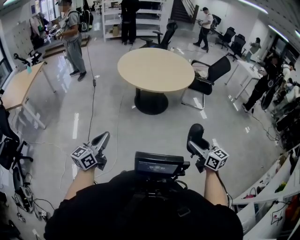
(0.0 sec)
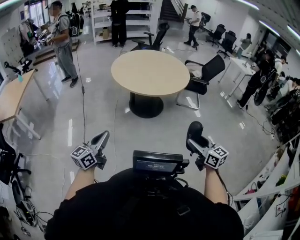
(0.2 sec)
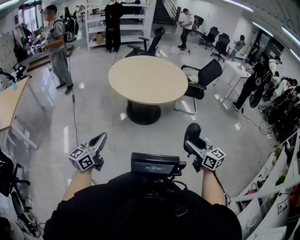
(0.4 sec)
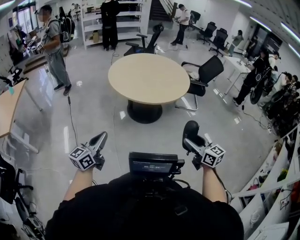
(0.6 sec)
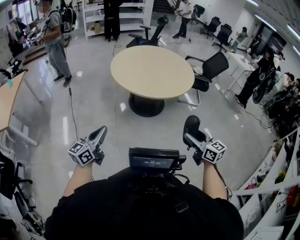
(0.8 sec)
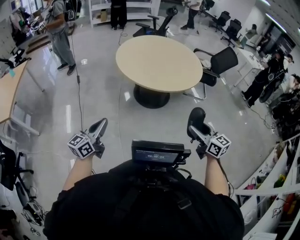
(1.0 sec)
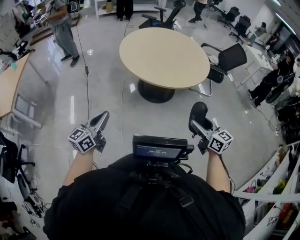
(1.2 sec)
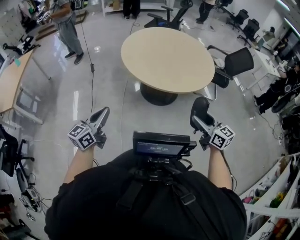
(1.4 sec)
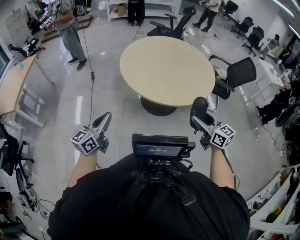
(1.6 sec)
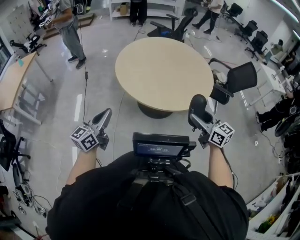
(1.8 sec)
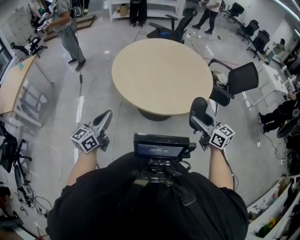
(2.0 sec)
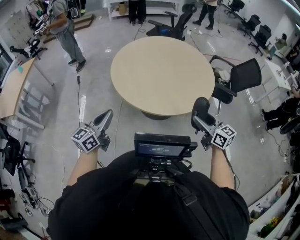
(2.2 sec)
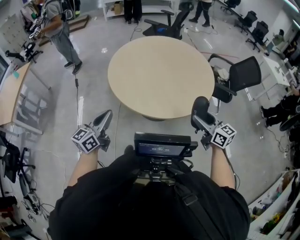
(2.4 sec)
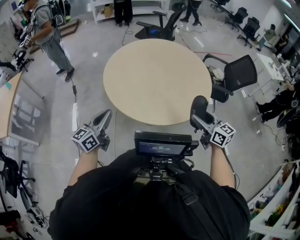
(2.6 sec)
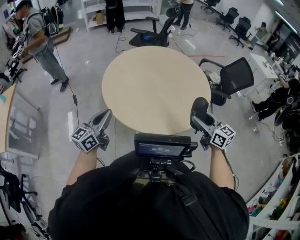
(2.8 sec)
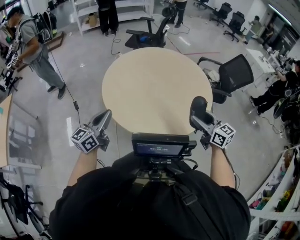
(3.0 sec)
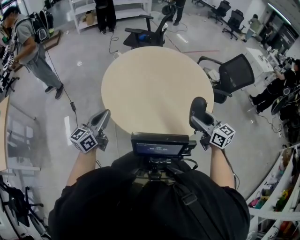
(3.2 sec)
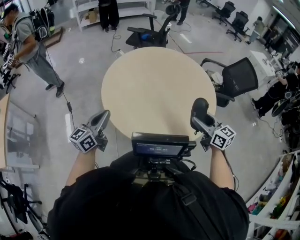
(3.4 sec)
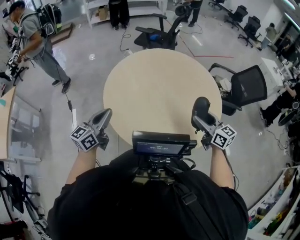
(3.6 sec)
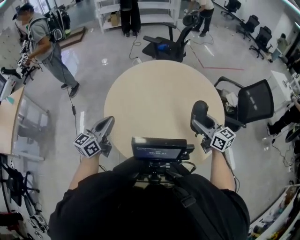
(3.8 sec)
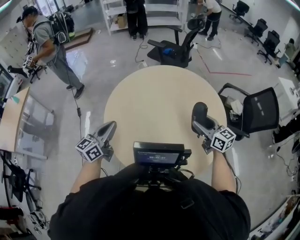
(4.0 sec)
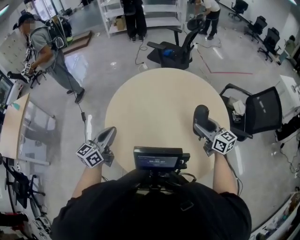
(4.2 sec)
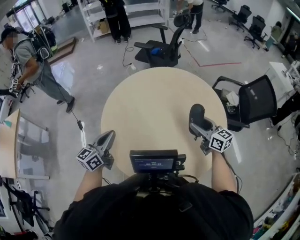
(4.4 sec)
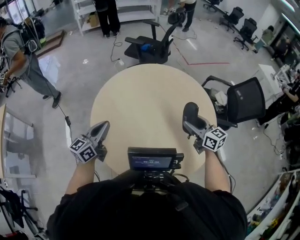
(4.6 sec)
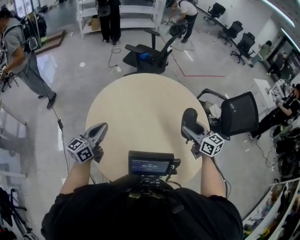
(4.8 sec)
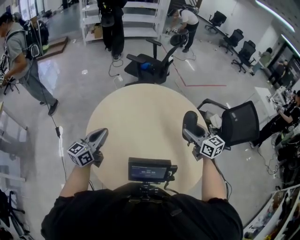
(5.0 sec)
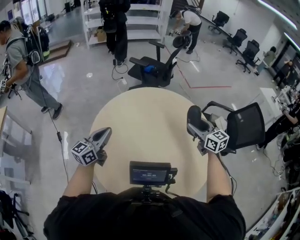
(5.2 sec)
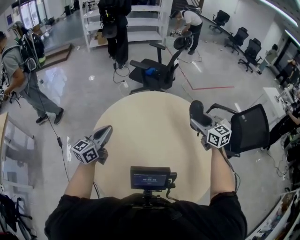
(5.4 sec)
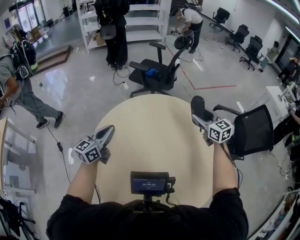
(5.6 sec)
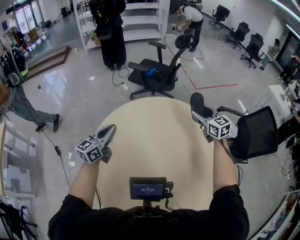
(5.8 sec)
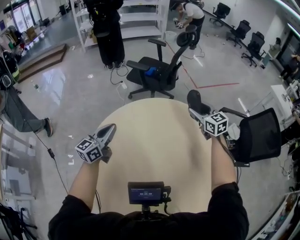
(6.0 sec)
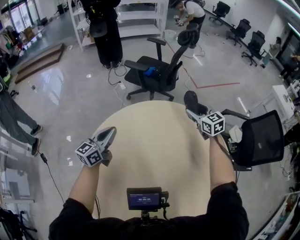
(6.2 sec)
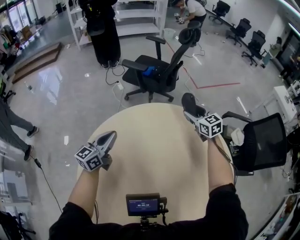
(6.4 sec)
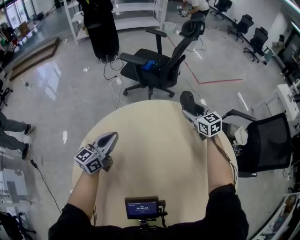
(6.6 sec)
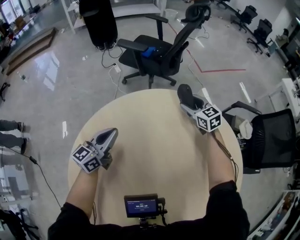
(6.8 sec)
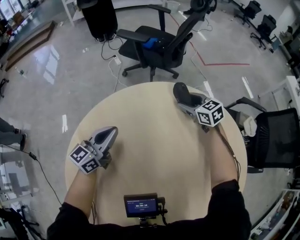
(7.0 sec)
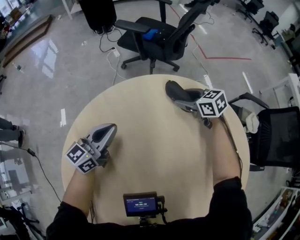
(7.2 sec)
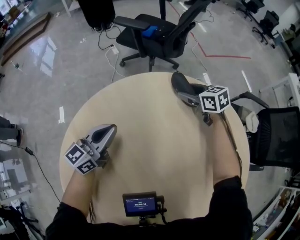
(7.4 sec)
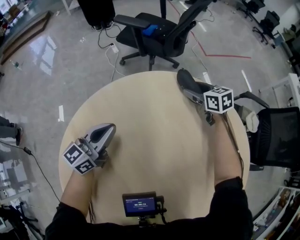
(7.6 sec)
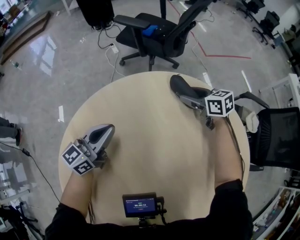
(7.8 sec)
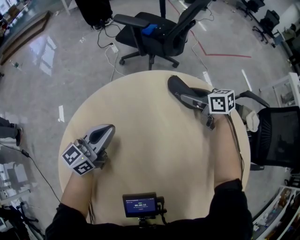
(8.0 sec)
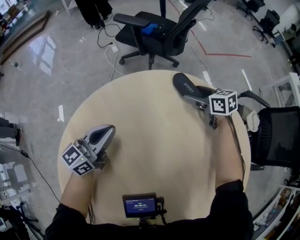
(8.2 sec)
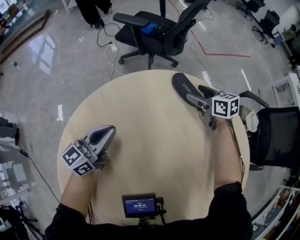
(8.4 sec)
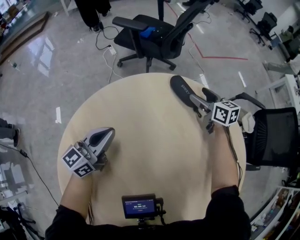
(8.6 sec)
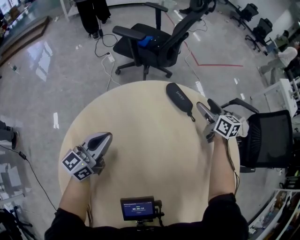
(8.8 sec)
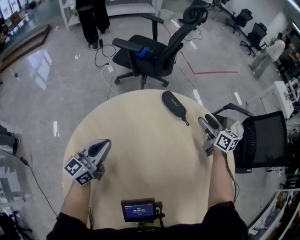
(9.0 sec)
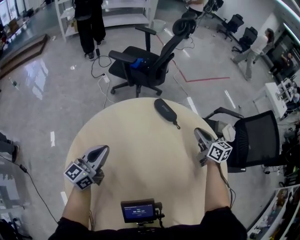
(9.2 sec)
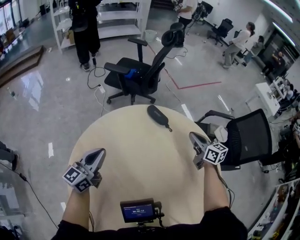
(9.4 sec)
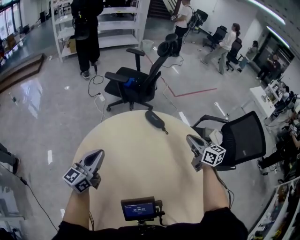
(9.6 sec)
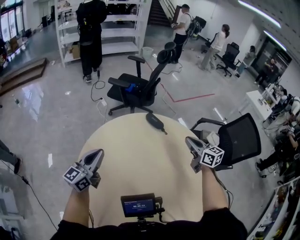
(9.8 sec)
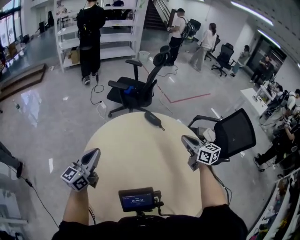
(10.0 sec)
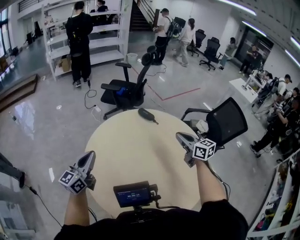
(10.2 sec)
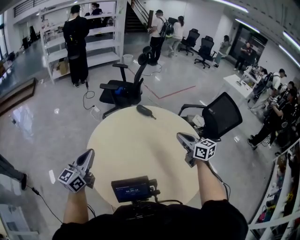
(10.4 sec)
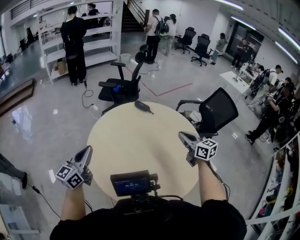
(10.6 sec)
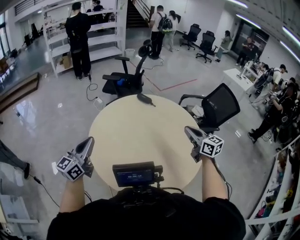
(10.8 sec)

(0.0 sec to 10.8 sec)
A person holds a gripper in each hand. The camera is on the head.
0.0 sec - 1.6 sec: The grippers both shift forward by some 40 cm.
1.6 sec - 3.0 sec: The two grippers go about 30 cm forward.
3.0 sec - 4.6 sec: The two grippers go about 30 cm forward.
4.6 sec - 6.2 sec: The grippers both shift forward by roughly 40 cm. The right gripper swivels roughly 20 degrees.
6.2 sec - 7.8 sec: The two grippers go some 20 cm downward and forward. The right gripper changes its angle by about 30 degrees.
7.8 sec - 9.2 sec: The right gripper is displaced backward, to the right and upward by approximately 20 cm, changes its angle by about 30 degrees, and closes up; the left gripper moves upward and backward, roughly 10 cm.
9.2 sec - 10.8 sec: The grippers both shift backward and upward by roughly 50 cm.

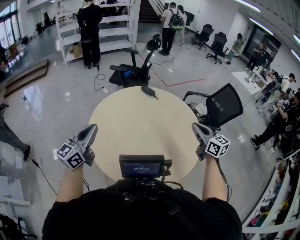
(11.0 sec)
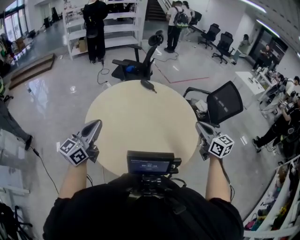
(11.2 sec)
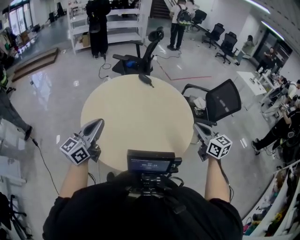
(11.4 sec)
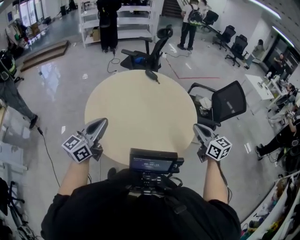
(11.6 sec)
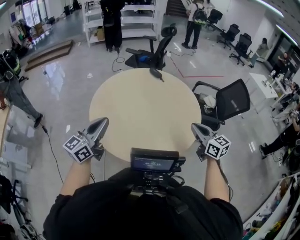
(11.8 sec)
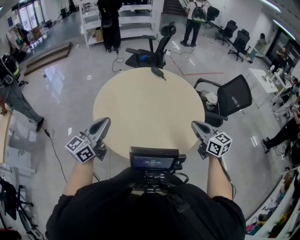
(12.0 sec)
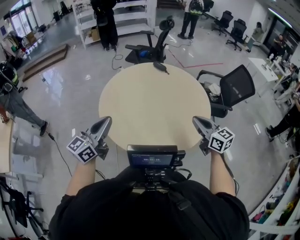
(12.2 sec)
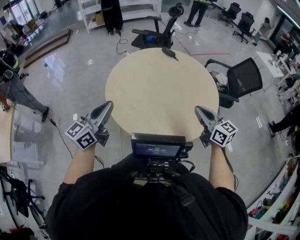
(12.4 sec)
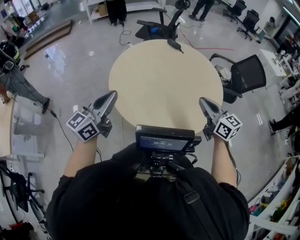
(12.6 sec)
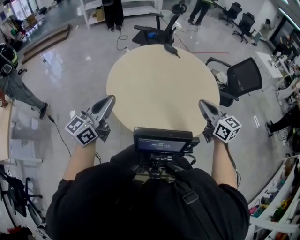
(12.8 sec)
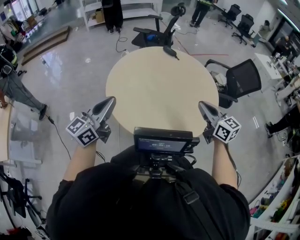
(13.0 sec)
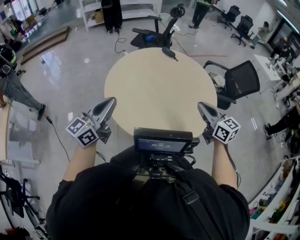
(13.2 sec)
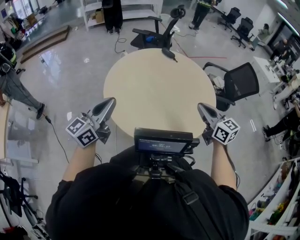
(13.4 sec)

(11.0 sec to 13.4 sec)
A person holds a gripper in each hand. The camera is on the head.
11.0 sec - 12.2 sec: Both grippers move backward, some 15 cm. The right gripper moves approximately 10 cm to the right and comes back.
12.2 sec - 13.4 sec: The grippers move only a little.

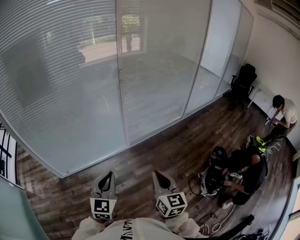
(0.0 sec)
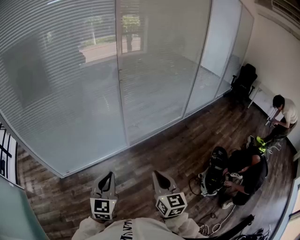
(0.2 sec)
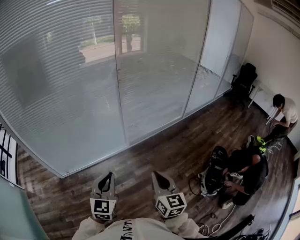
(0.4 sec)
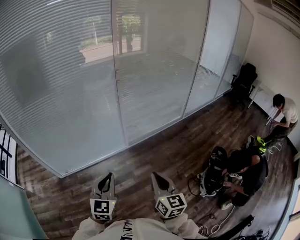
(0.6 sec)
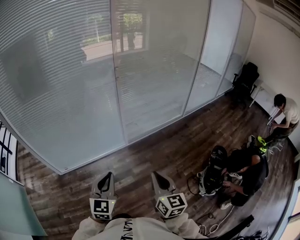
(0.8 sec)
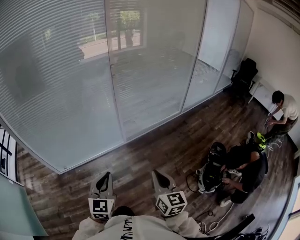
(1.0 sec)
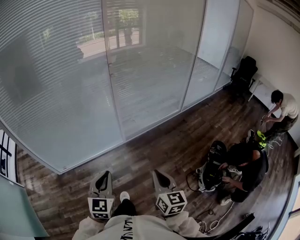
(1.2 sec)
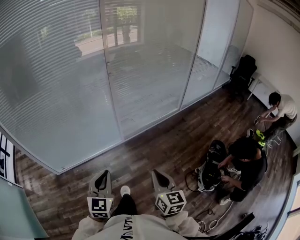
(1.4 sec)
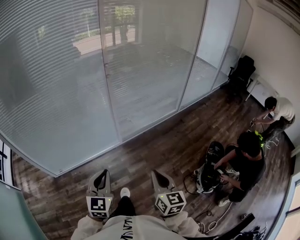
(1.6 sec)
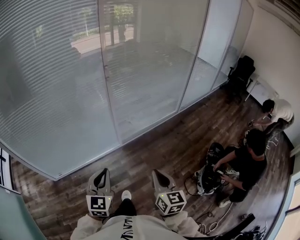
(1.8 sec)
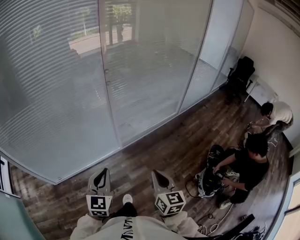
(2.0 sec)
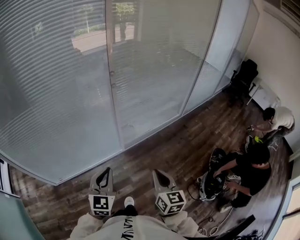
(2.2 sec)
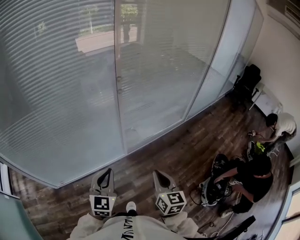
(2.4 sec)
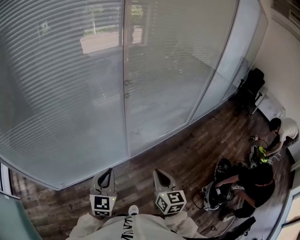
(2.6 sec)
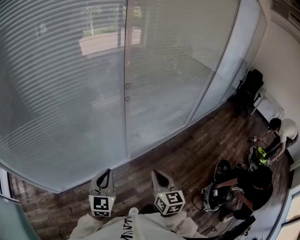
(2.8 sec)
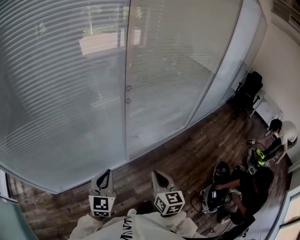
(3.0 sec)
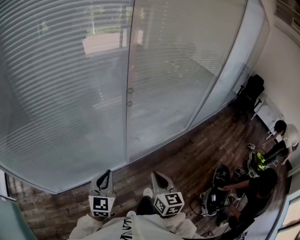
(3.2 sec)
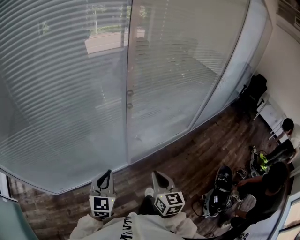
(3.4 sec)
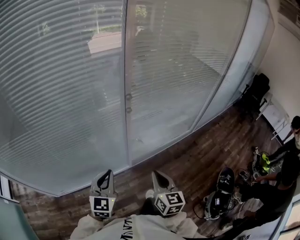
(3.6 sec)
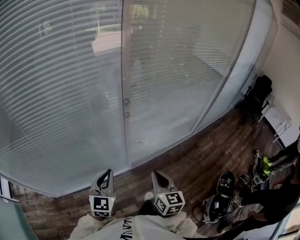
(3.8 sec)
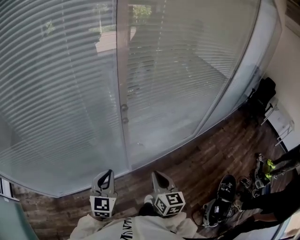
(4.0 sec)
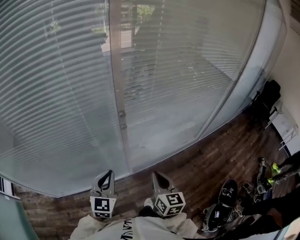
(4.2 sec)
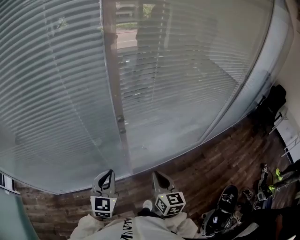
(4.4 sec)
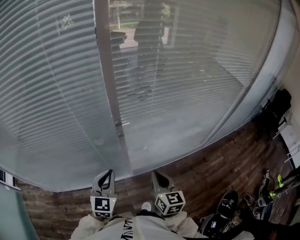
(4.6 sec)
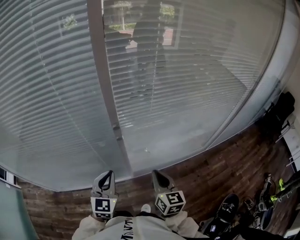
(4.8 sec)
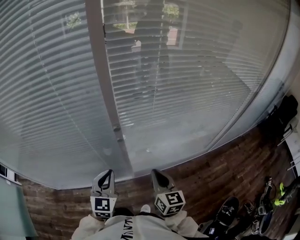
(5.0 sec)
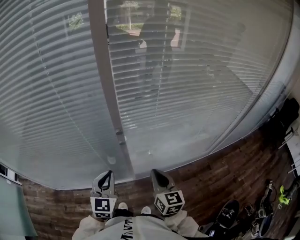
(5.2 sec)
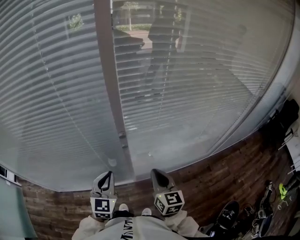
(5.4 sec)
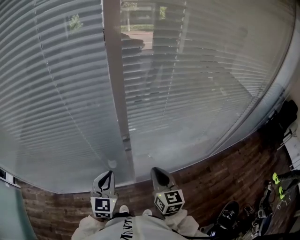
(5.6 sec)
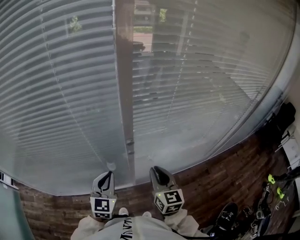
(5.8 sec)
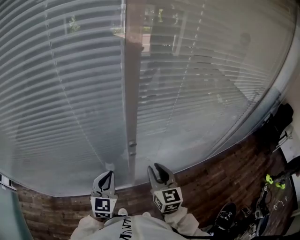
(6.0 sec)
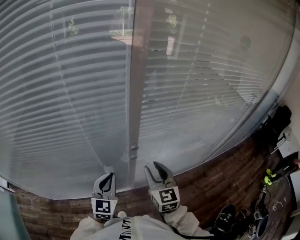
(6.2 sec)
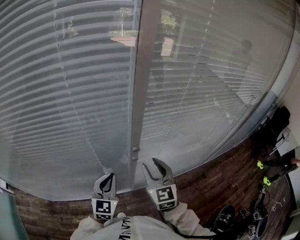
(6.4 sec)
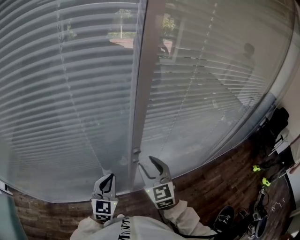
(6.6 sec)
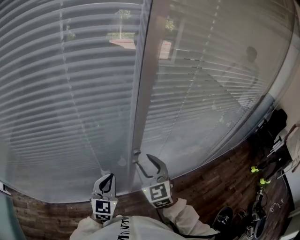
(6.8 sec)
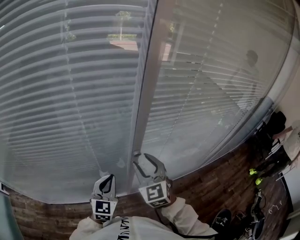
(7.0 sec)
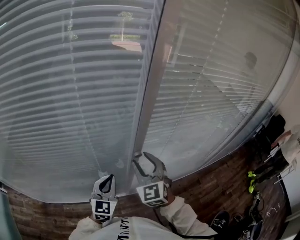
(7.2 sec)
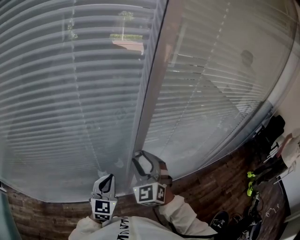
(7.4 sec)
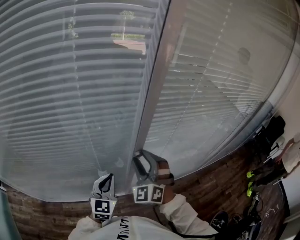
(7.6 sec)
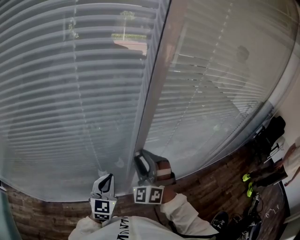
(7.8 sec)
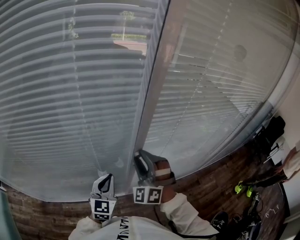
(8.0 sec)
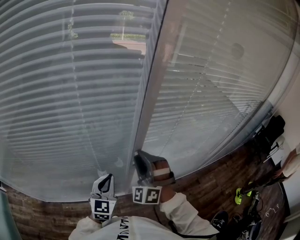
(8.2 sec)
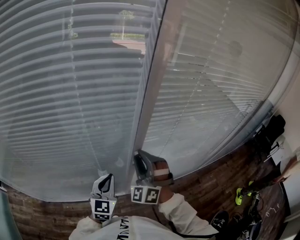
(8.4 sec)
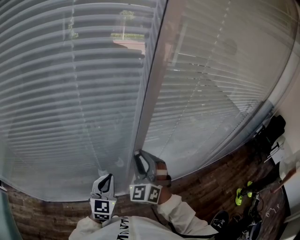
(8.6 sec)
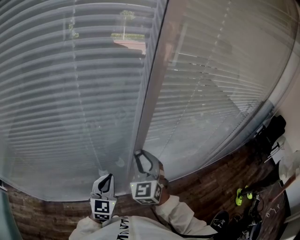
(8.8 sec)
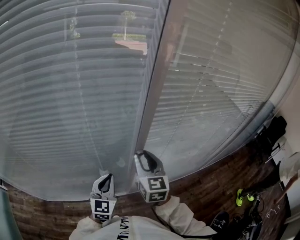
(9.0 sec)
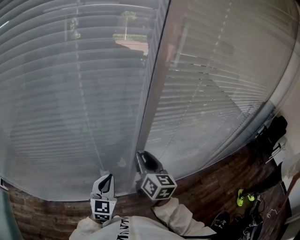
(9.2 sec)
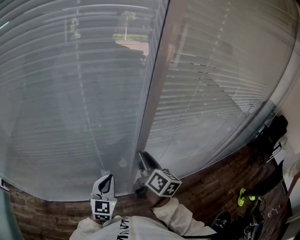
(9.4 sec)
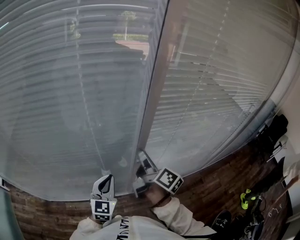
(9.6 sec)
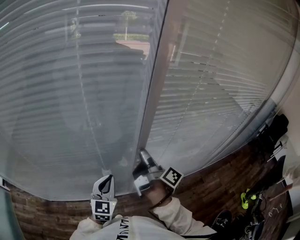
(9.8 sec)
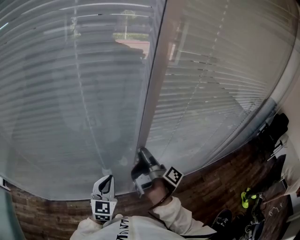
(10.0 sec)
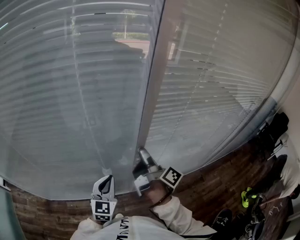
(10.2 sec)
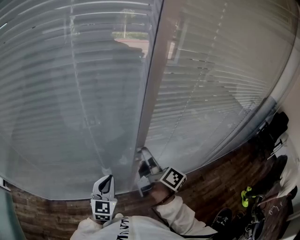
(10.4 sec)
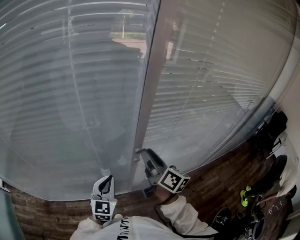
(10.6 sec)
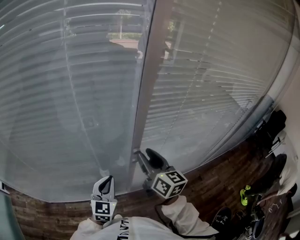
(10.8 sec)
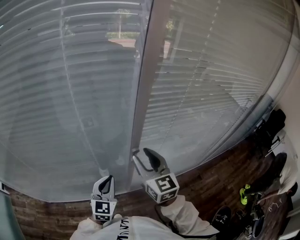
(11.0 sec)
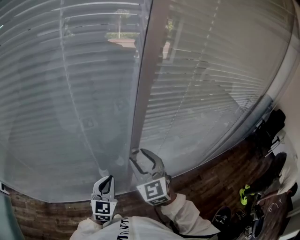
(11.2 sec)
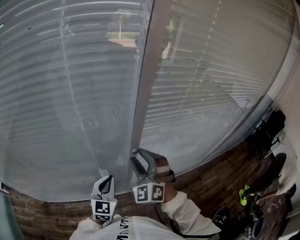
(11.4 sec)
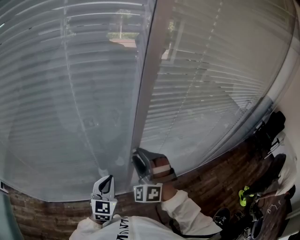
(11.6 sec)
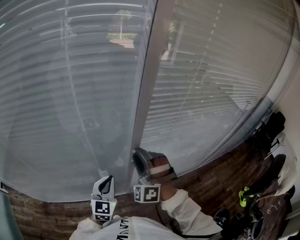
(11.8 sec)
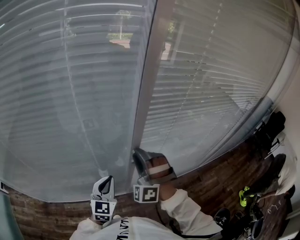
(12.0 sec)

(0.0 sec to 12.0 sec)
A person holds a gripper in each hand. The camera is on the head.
0.0 sec - 1.6 sec: The right gripper is displaced to the right by about 5 cm, while the left gripper moves approximately 5 cm.
1.6 sec - 3.0 sec: The right gripper is displaced forward and to the left by approximately 25 cm; the left gripper travels forward by approximately 20 cm.
3.0 sec - 4.4 sec: The left gripper is displaced forward and to the right by roughly 15 cm, while the right gripper is displaced forward by roughly 20 cm.
4.4 sec - 6.0 sec: The right gripper is displaced forward and upward by approximately 15 cm, while the left gripper heads forward, covering approximately 10 cm.
6.0 sec - 7.6 sec: The right gripper heads to the left, forward and upward, covering roughly 10 cm, rolls counterclockwise, seen from behind, by some 60 degrees, and opens its fingers.
7.6 sec - 9.0 sec: The right gripper twists roughly 50 degrees clockwise, seen from behind.
9.0 sec - 10.4 sec: The right gripper rolls clockwise, seen from behind, by roughly 70 degrees.
10.4 sec - 12.0 sec: The right gripper twists some 150 degrees counterclockwise, seen from behind.
